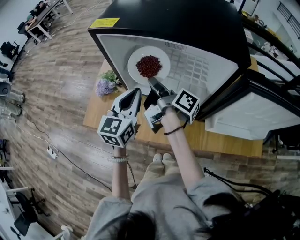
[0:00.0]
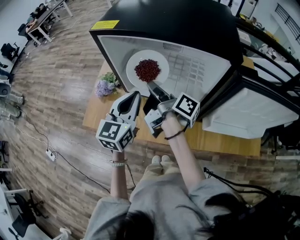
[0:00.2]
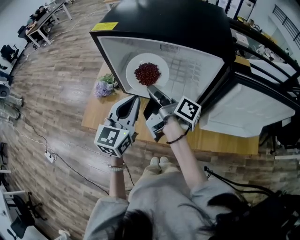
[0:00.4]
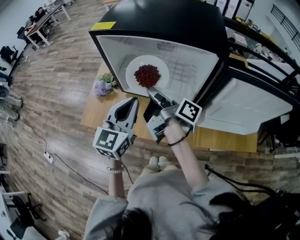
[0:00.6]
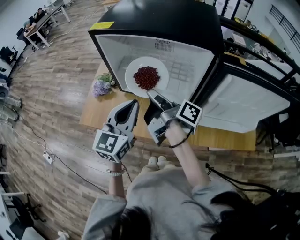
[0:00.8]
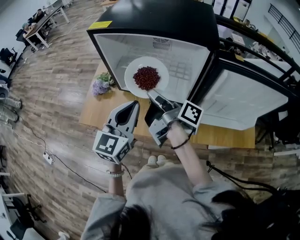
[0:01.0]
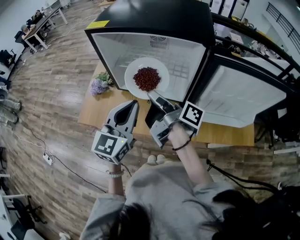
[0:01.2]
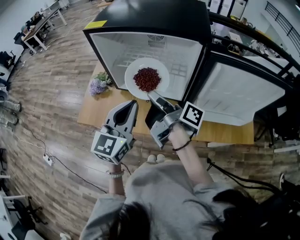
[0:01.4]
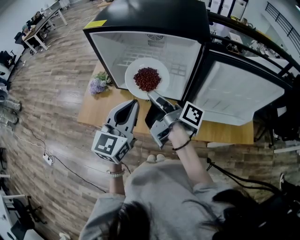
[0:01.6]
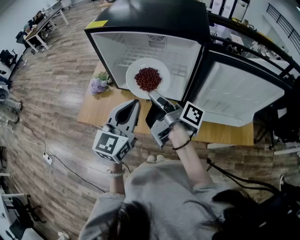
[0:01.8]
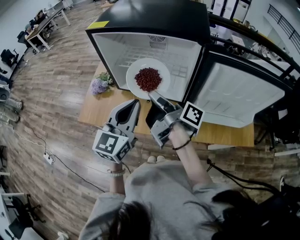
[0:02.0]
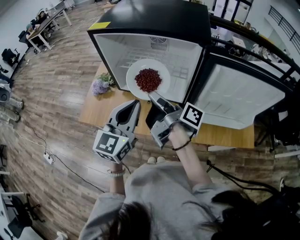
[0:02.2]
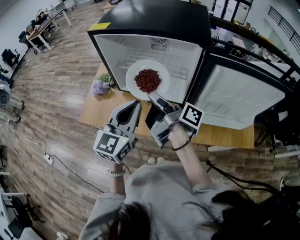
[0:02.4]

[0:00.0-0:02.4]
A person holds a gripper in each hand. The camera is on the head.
0:00.0 to 0:01.2: The left gripper heads backward, upward and to the right, covering approximately 15 cm; the right gripper goes approximately 15 cm backward and to the right.
0:01.2 to 0:02.4: Both grippers stay about where they are.

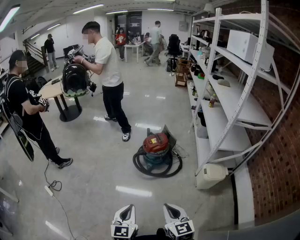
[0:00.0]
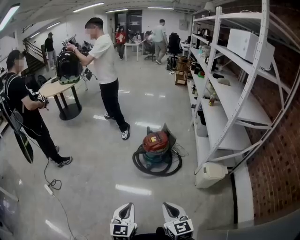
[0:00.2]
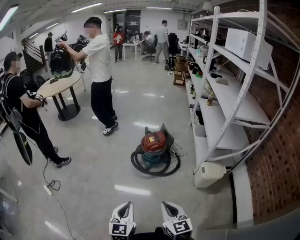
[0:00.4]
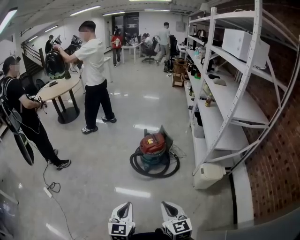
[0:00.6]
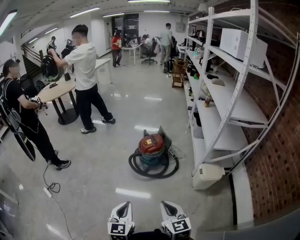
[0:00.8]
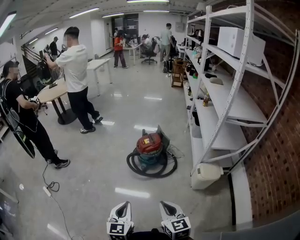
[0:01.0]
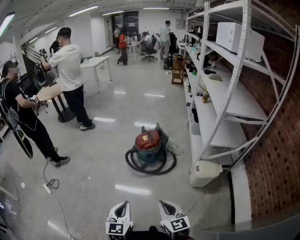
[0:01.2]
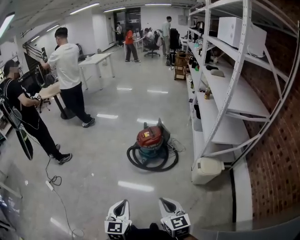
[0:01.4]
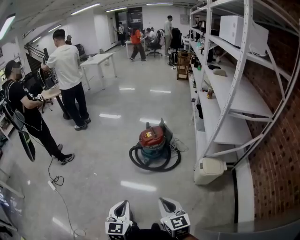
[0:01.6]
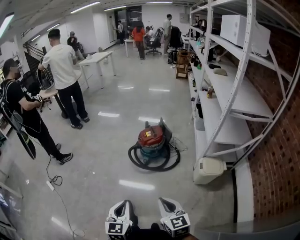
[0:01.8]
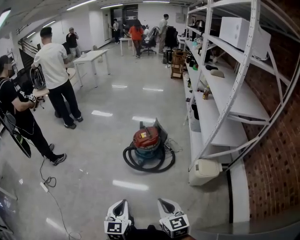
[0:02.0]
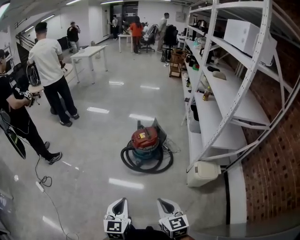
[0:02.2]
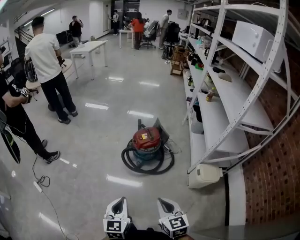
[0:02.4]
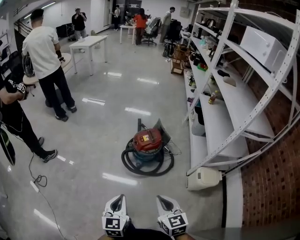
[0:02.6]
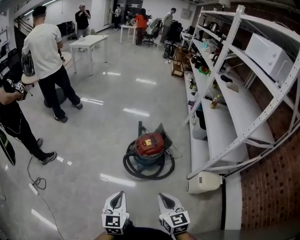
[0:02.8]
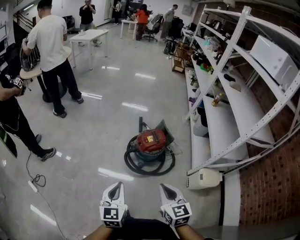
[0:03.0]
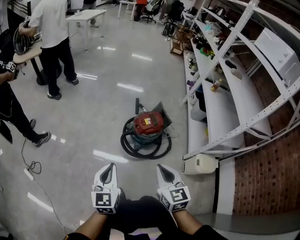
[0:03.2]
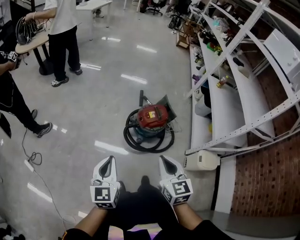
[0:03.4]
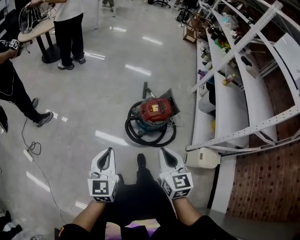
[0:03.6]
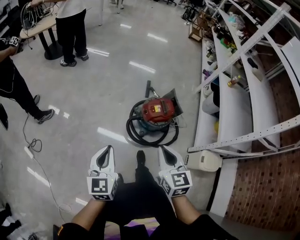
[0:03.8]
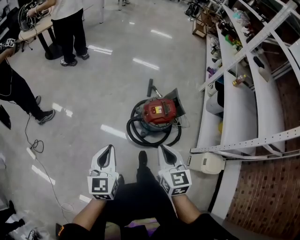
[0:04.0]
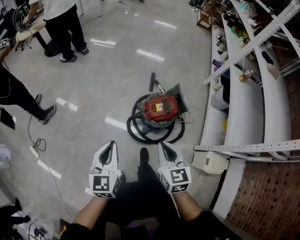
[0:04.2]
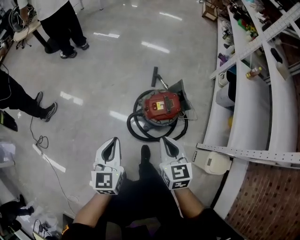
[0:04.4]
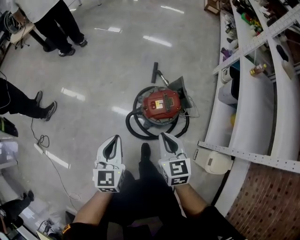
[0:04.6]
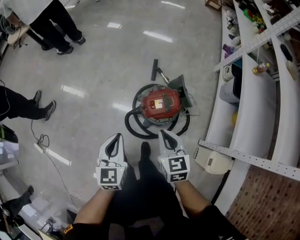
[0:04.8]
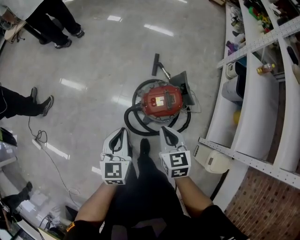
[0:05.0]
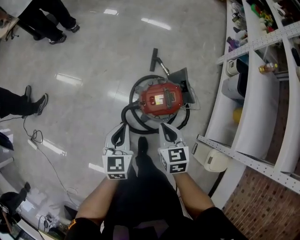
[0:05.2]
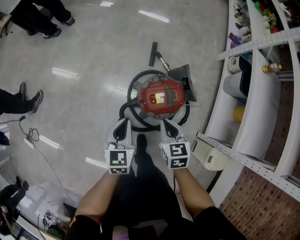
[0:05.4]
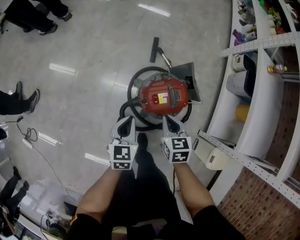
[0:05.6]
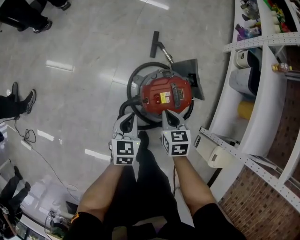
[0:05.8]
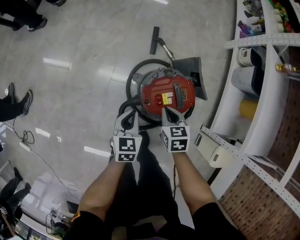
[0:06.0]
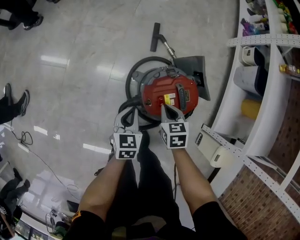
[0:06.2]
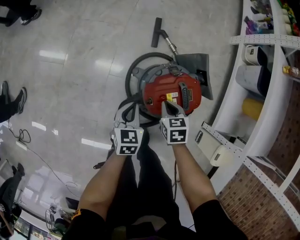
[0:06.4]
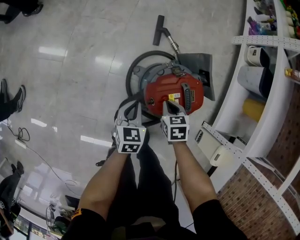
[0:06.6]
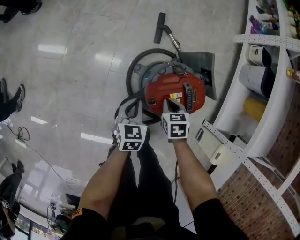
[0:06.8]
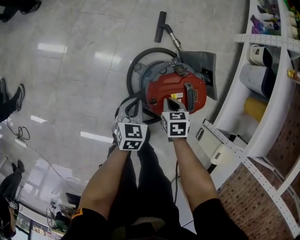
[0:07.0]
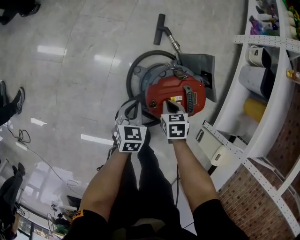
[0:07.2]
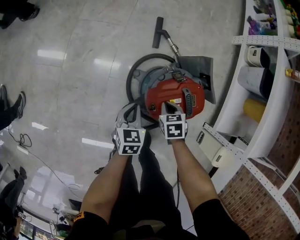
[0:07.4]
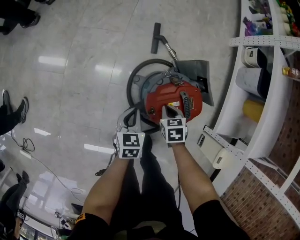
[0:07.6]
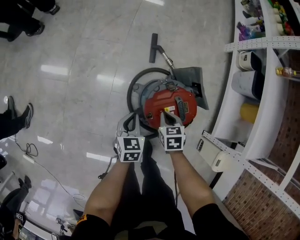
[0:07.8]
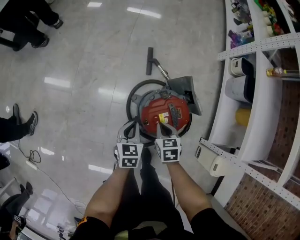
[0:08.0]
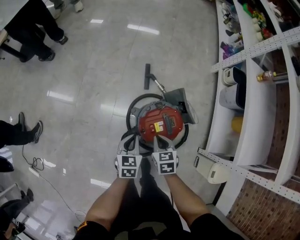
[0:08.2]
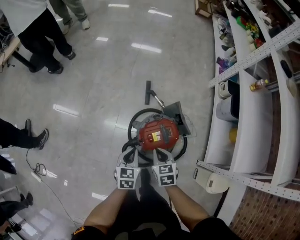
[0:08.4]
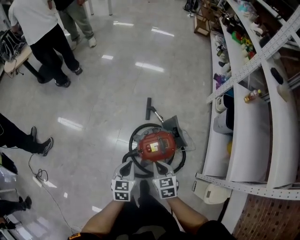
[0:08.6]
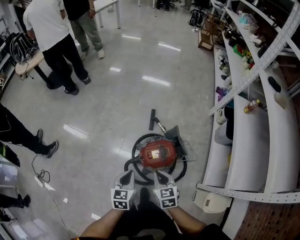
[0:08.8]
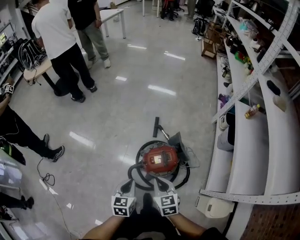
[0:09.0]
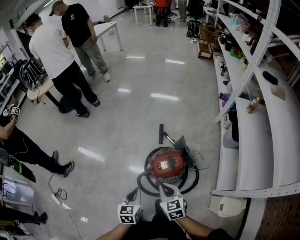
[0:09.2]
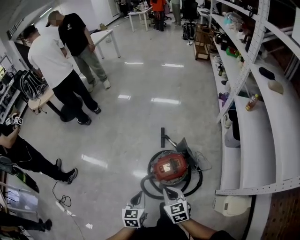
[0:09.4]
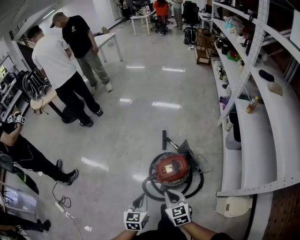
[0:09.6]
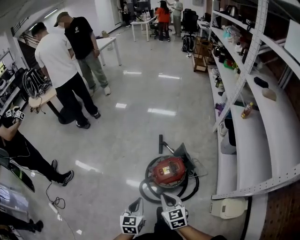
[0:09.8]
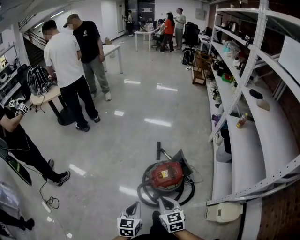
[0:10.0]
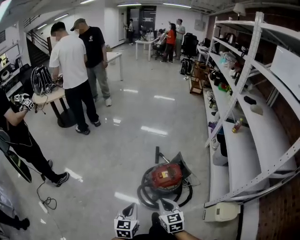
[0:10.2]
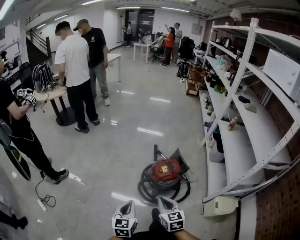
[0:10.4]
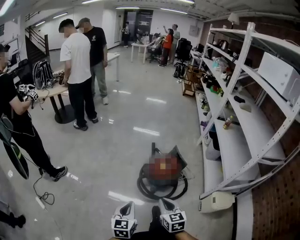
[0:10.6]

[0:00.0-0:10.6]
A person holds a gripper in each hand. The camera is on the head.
0:00.0 to 0:01.6: Both grippers move to the right, some 10 cm.
0:01.6 to 0:03.0: The grippers both shift forward and to the left by about 30 cm.
0:03.0 to 0:04.6: The two grippers go roughly 30 cm forward.
0:04.6 to 0:06.0: Both grippers travel together downward and forward, roughly 35 cm. The left gripper changes its angle by about 20 degrees, while the right gripper swivels some 30 degrees.
0:06.0 to 0:07.6: Both grippers travel together downward, about 10 cm.
0:07.6 to 0:09.0: The grippers both shift upward and backward by some 35 cm. The right gripper angles its fingers upward, by some 30 degrees.
0:09.0 to 0:10.6: Both grippers travel together backward and to the left, roughly 30 cm.

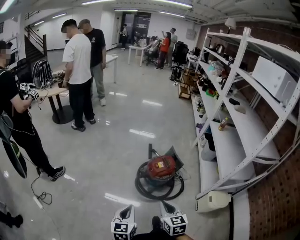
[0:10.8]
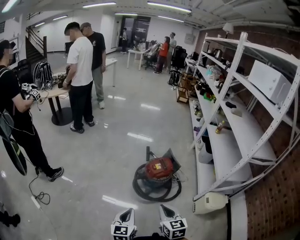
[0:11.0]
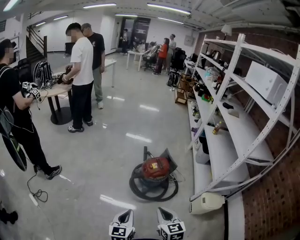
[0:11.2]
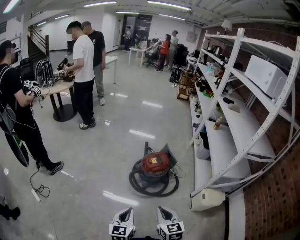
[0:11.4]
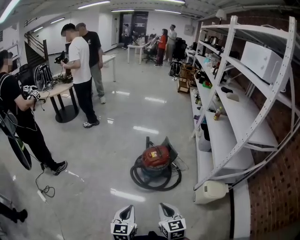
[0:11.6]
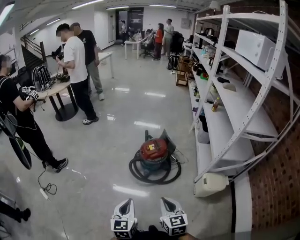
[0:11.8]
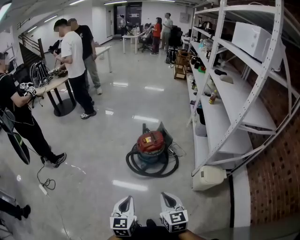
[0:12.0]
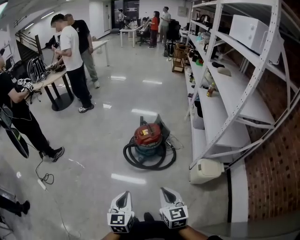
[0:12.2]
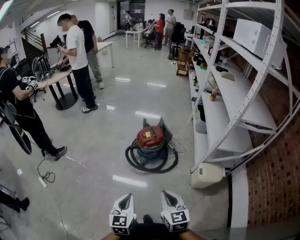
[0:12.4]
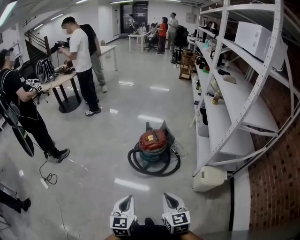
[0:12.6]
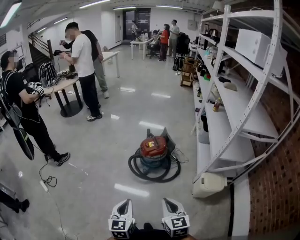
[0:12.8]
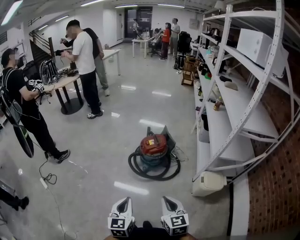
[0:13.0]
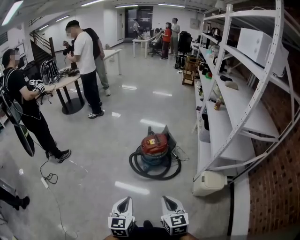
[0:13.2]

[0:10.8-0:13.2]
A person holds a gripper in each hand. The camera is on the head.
0:10.8 to 0:12.0: The grippers both shift backward and to the right by about 20 cm.
0:12.0 to 0:13.2: There are only small adjustments of the grippers.

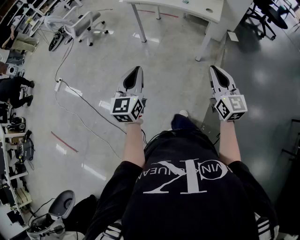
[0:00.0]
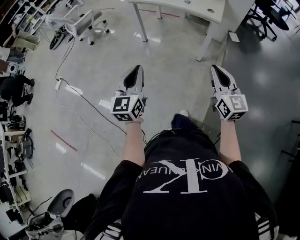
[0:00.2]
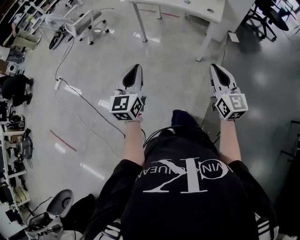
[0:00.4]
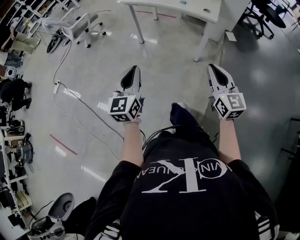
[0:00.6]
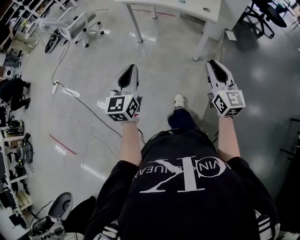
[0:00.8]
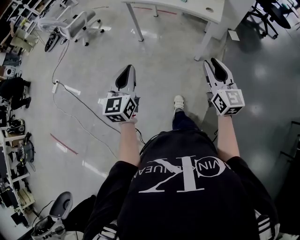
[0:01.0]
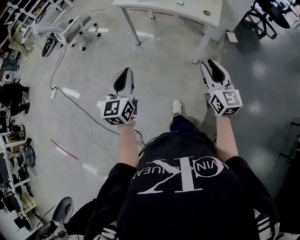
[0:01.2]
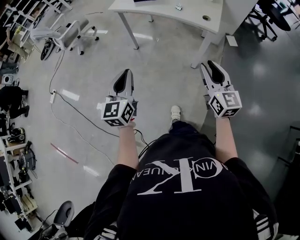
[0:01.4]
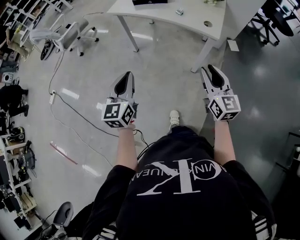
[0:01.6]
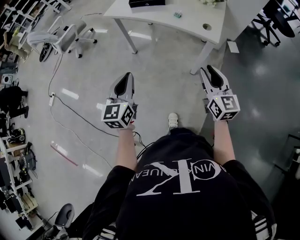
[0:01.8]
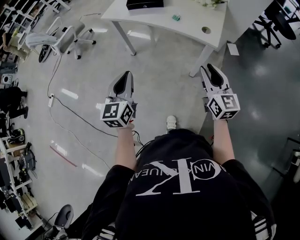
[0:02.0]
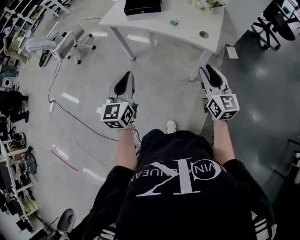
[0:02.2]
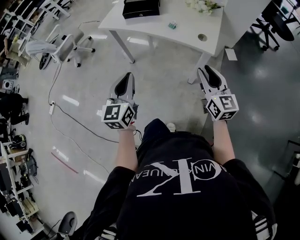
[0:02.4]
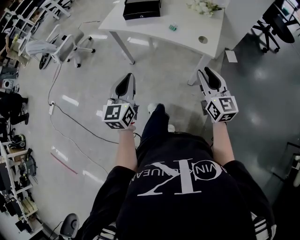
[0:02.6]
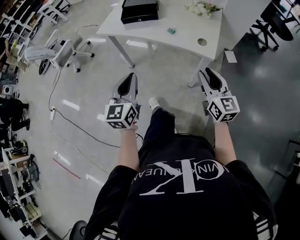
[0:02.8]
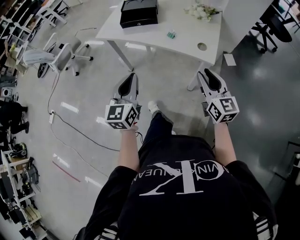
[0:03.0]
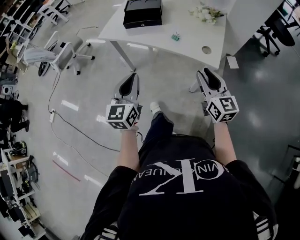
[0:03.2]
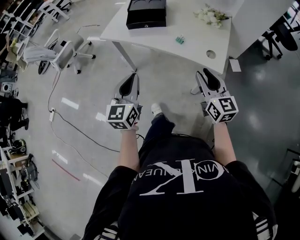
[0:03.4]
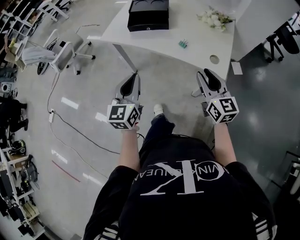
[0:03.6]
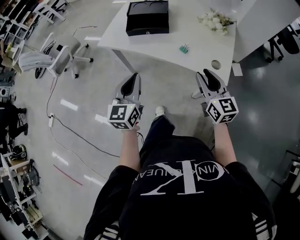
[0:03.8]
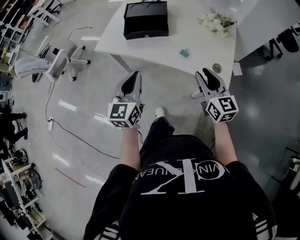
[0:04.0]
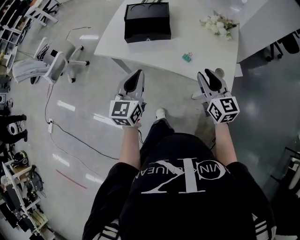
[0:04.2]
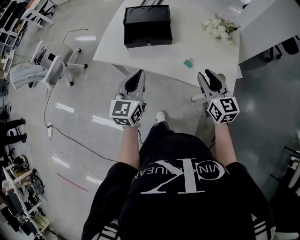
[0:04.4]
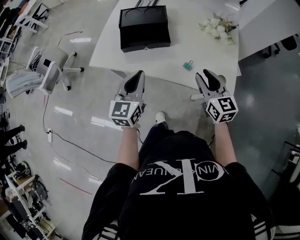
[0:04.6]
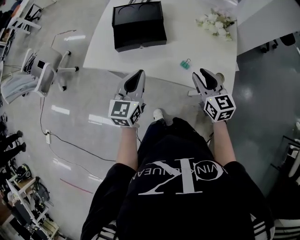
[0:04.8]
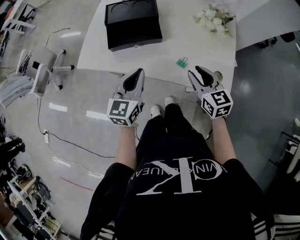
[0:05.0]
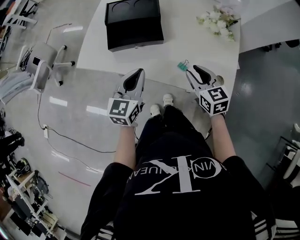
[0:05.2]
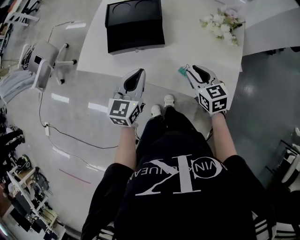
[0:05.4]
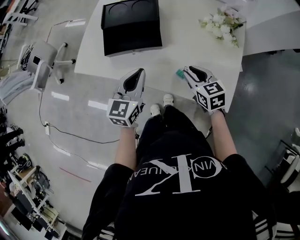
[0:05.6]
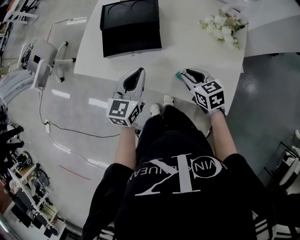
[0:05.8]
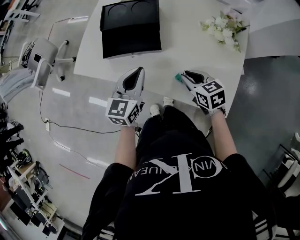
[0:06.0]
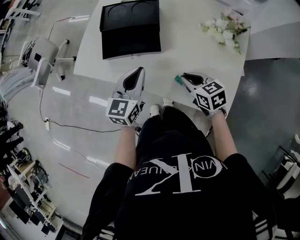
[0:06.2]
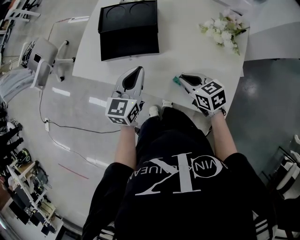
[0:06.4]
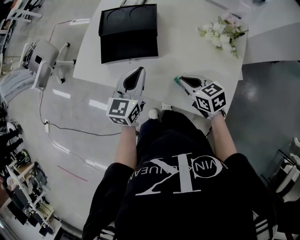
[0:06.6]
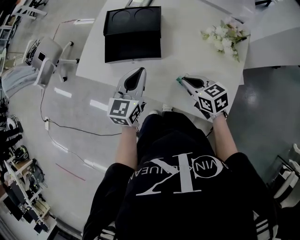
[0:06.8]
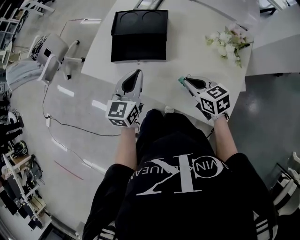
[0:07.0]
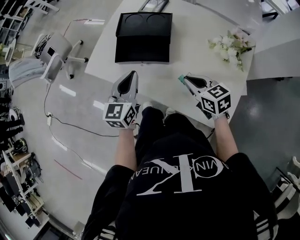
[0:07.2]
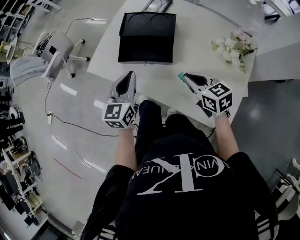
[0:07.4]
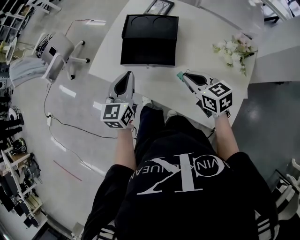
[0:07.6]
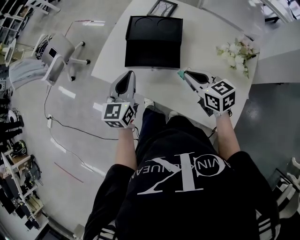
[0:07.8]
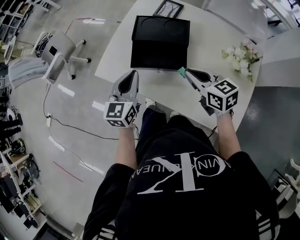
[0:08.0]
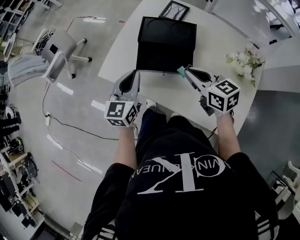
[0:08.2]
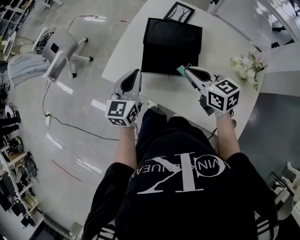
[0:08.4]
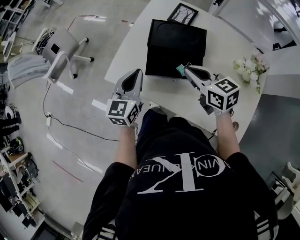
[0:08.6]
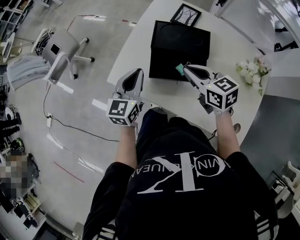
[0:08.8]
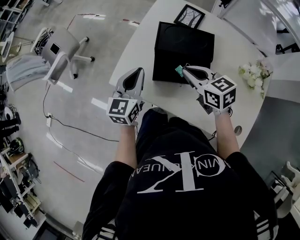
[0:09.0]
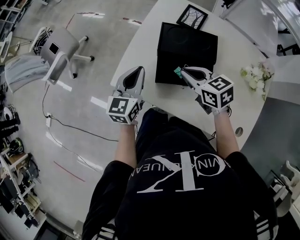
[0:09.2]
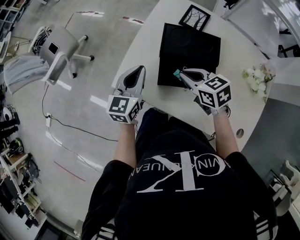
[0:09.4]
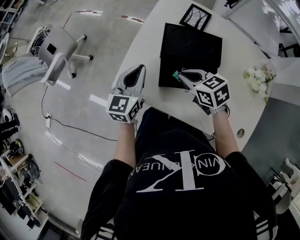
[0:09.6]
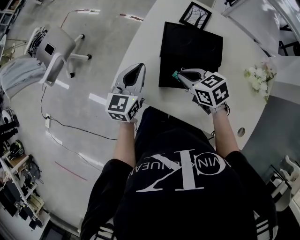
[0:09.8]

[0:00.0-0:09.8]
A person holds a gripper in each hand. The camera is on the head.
0:00.0 to 0:01.4: Both grippers travel together forward, roughly 20 cm.
0:01.4 to 0:02.8: The grippers both shift forward and to the right by some 20 cm.
0:02.8 to 0:04.2: Both grippers move forward, some 25 cm.
0:04.2 to 0:05.6: Both grippers travel together forward and downward, roughly 15 cm. The right gripper swivels about 30 degrees.
0:05.6 to 0:07.0: The grippers stay close to where they were, moving slightly.
0:07.0 to 0:08.4: The right gripper heads forward, to the left and upward, covering approximately 20 cm; the left gripper moves to the left and forward, approximately 15 cm.
0:08.4 to 0:09.8: The left gripper travels forward by about 10 cm, while the right gripper shifts roughly 15 cm to the left, forward and downward.
